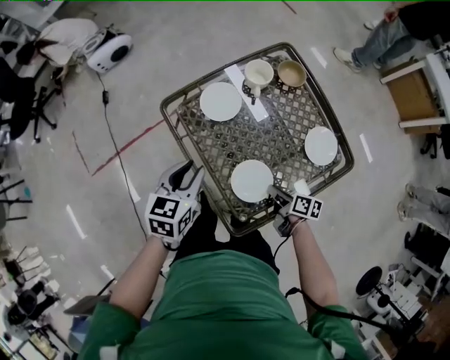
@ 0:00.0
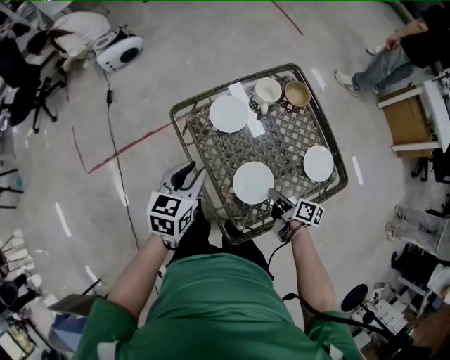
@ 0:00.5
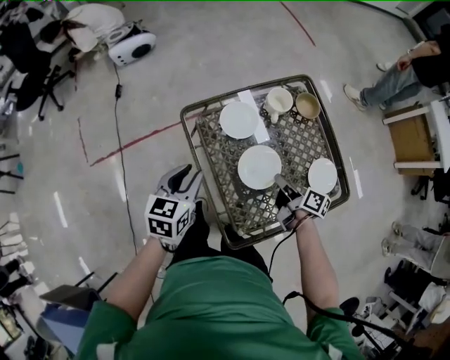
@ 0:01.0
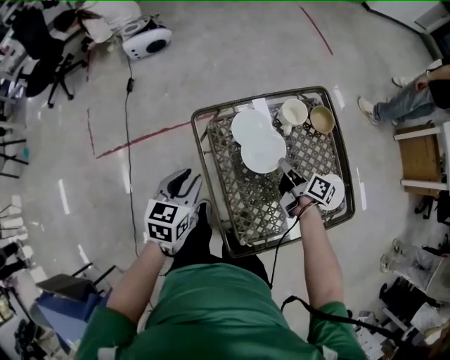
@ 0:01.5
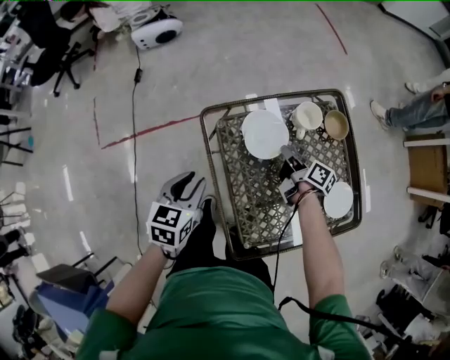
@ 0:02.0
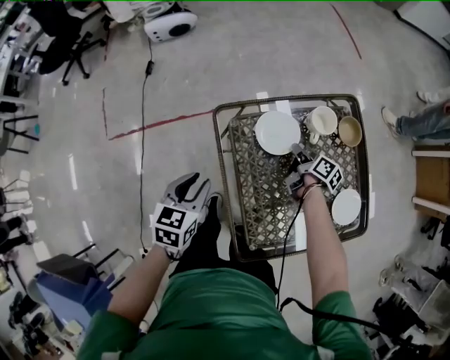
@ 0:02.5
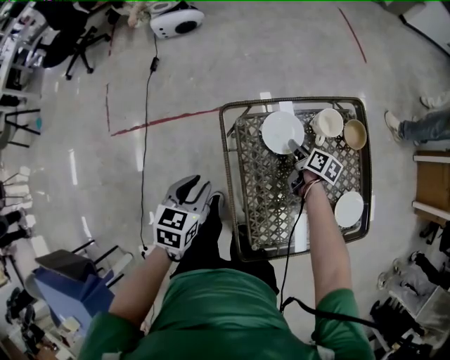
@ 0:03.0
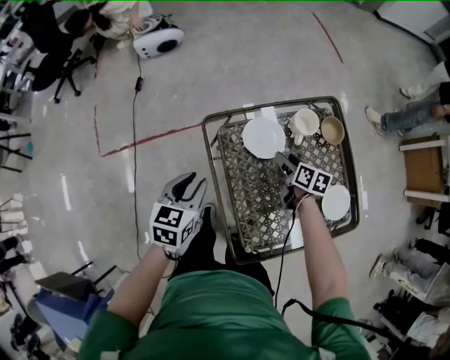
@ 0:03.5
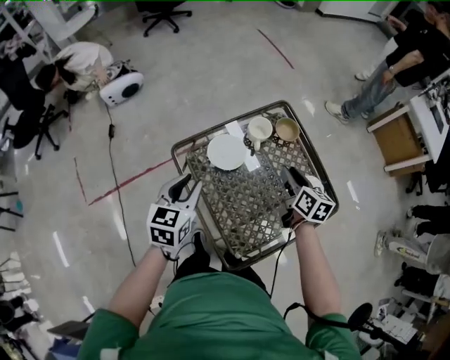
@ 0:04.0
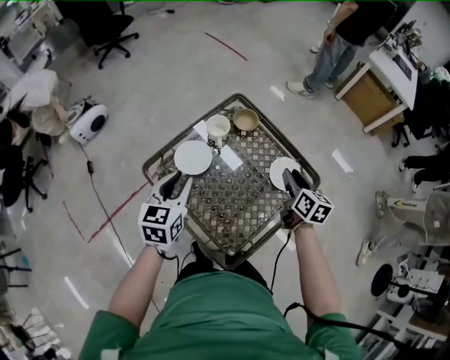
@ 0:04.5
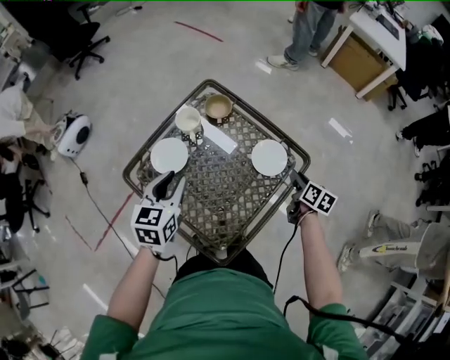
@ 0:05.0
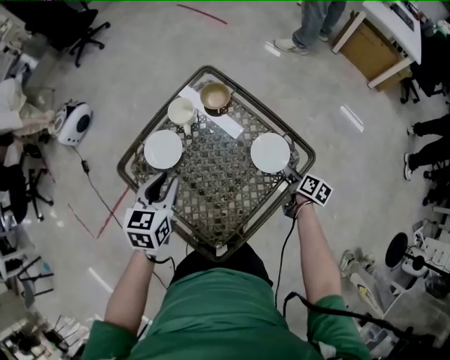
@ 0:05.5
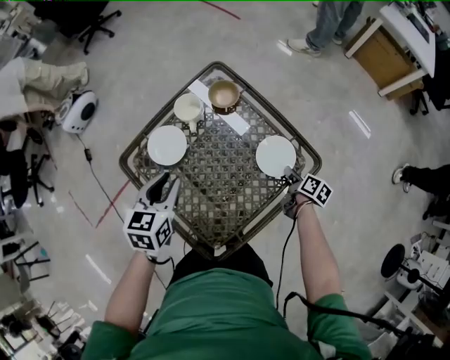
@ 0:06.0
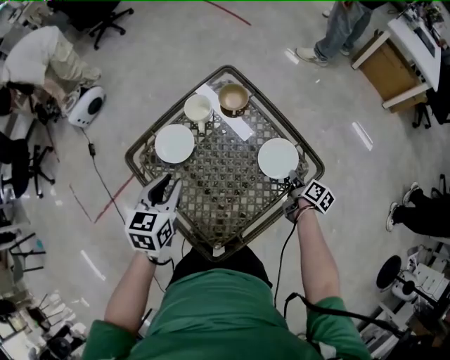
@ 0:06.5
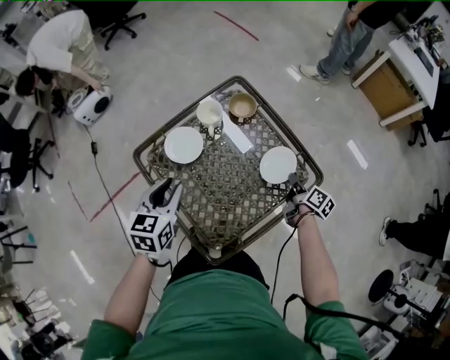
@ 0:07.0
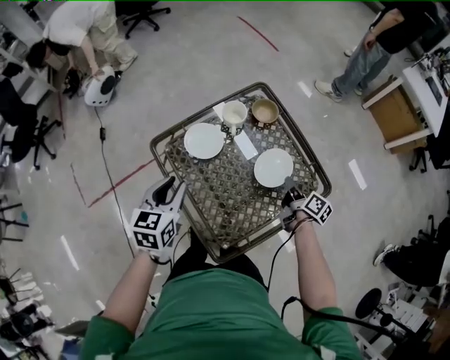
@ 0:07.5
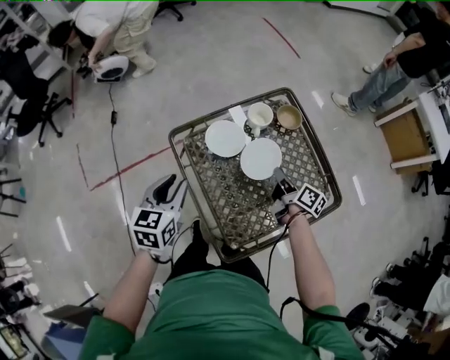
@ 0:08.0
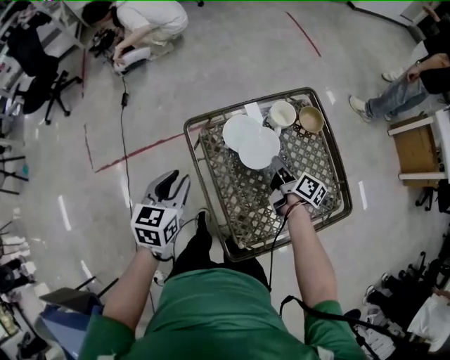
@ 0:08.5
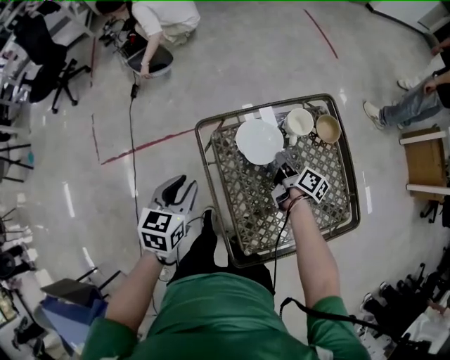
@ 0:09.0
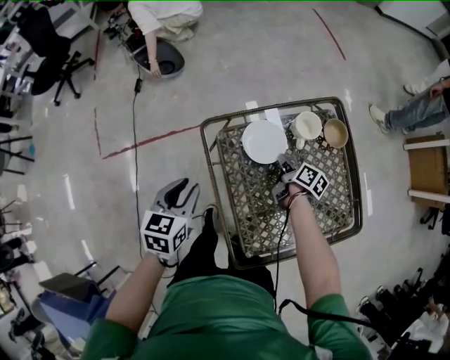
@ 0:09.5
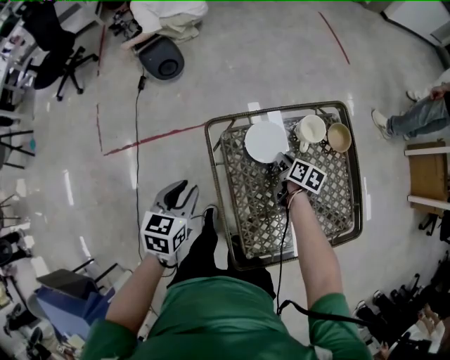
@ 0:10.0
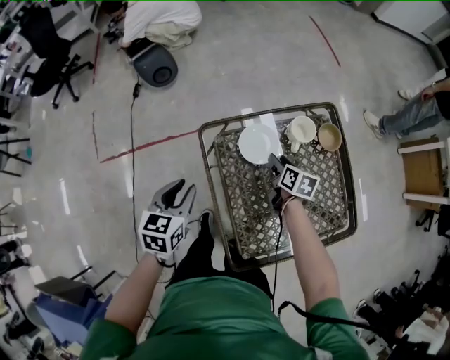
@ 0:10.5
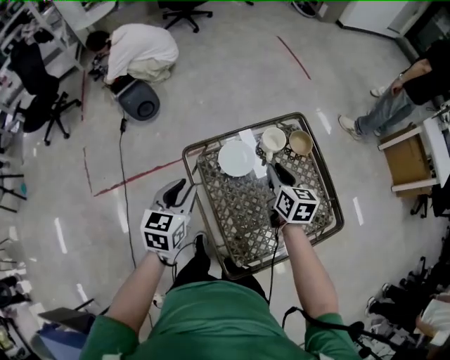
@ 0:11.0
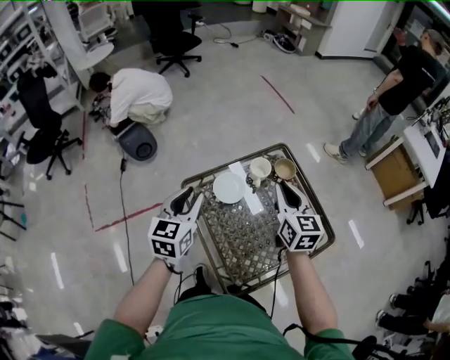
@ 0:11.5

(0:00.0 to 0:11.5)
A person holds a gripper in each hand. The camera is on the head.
0:00.0 - 0:02.0: The left gripper shifts roughly 10 cm to the left. The right gripper moves forward, approximately 30 cm.
0:02.0 - 0:04.0: The right gripper heads upward, to the right and backward, covering roughly 20 cm, changes its angle by some 40 degrees, and opens; the left gripper shifts about 10 cm upward and to the right.
0:04.0 - 0:06.0: The right gripper is displaced to the right and downward by approximately 35 cm, and rotates approximately 40 degrees. The left gripper goes some 20 cm to the right and forward.
0:06.0 - 0:07.5: The left gripper travels to the left and backward by about 10 cm, while the right gripper travels to the left and upward by roughly 15 cm, changes its angle by some 20 degrees, and closes.
0:07.5 - 0:09.5: The right gripper shifts some 30 cm to the left and forward, and changes its angle by some 20 degrees. Meanwhile the left gripper travels to the left and downward by some 15 cm.
0:09.5 - 0:11.5: The left gripper goes some 20 cm upward and to the right, and swivels approximately 20 degrees. Meanwhile the right gripper travels upward by about 35 cm, twists about 50 degrees counterclockwise, seen from behind, and opens, then closes again.

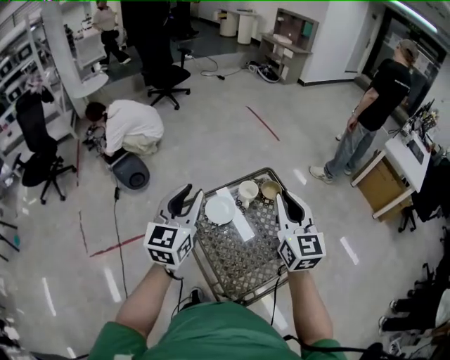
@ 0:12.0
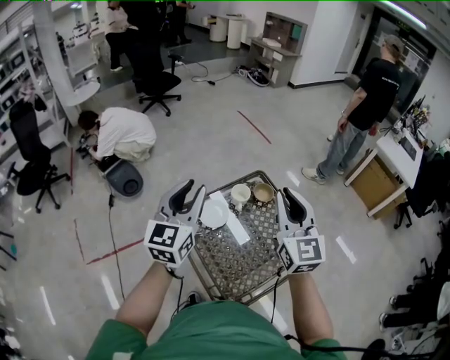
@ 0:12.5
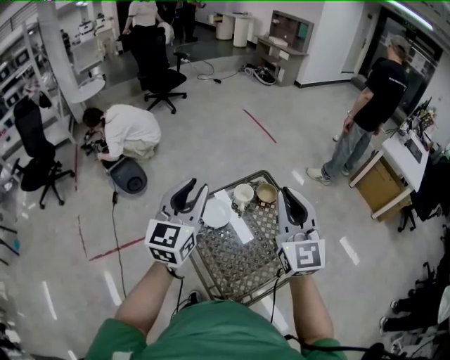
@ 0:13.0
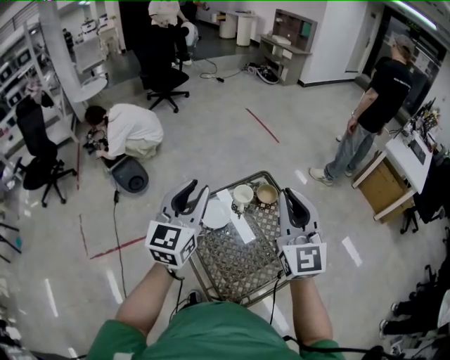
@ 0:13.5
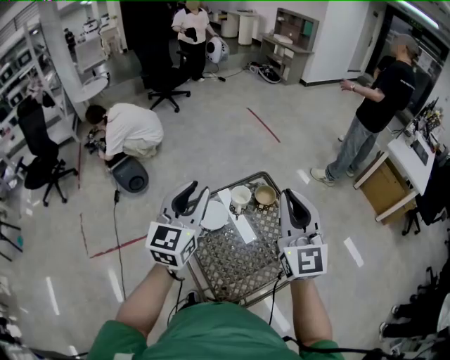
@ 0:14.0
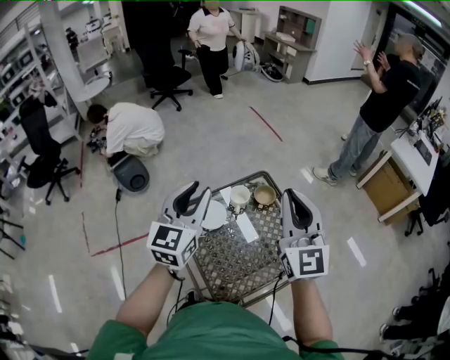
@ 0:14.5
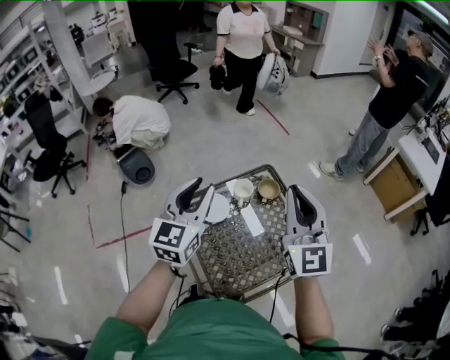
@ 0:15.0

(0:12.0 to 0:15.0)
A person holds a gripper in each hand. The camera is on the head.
0:12.0 - 0:13.5: The right gripper heads upward, covering roughly 5 cm. Meanwhile the left gripper changes place by some 5 cm.
0:13.5 - 0:15.0: The two grippers go roughly 5 cm to the right.

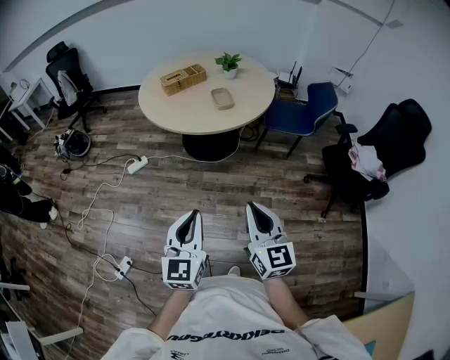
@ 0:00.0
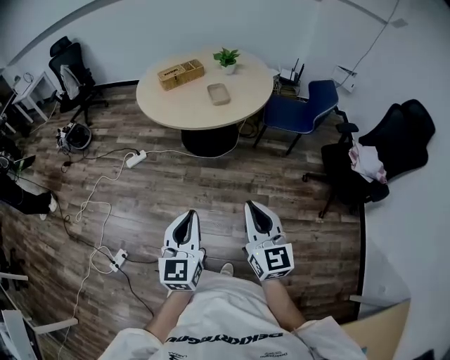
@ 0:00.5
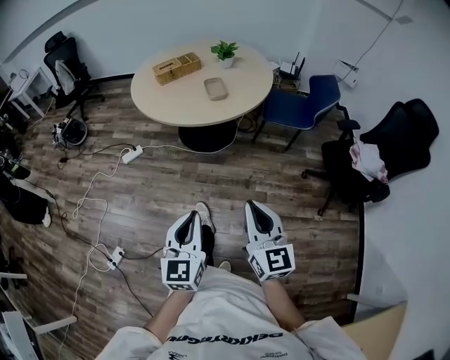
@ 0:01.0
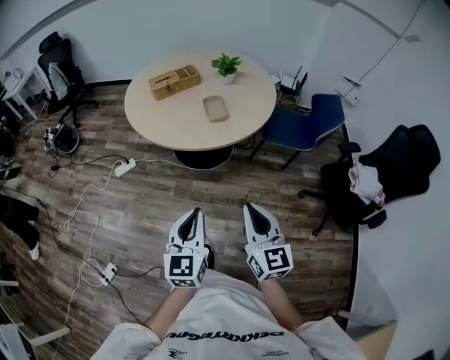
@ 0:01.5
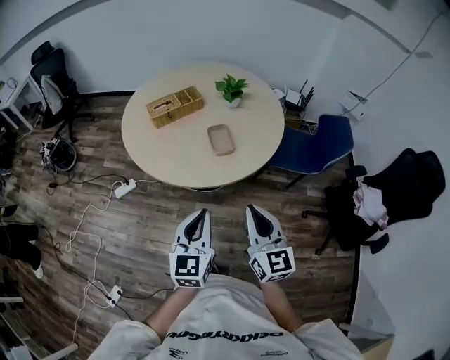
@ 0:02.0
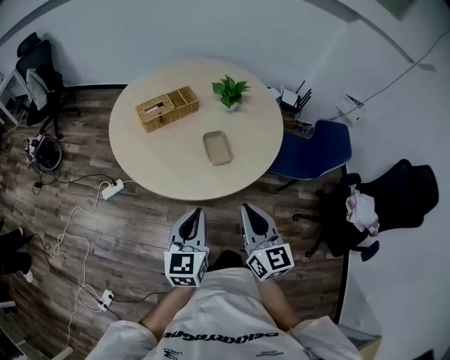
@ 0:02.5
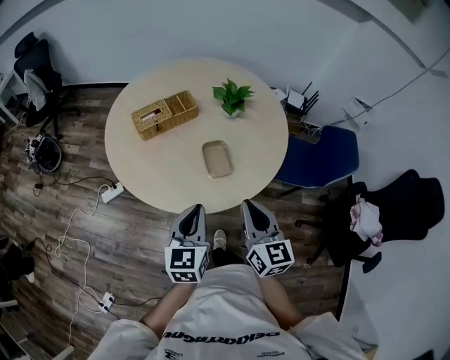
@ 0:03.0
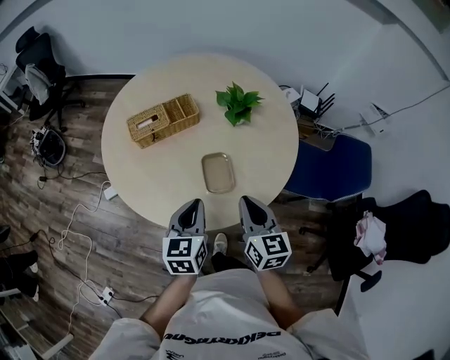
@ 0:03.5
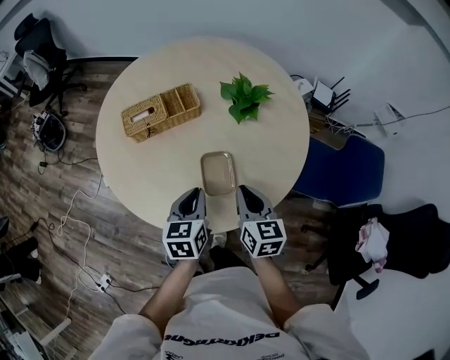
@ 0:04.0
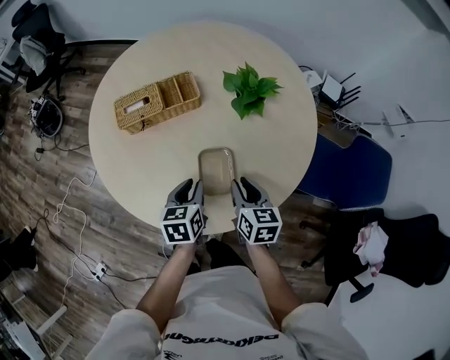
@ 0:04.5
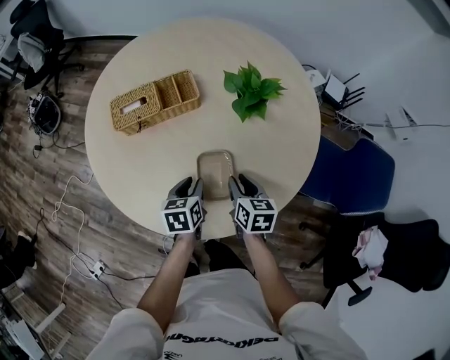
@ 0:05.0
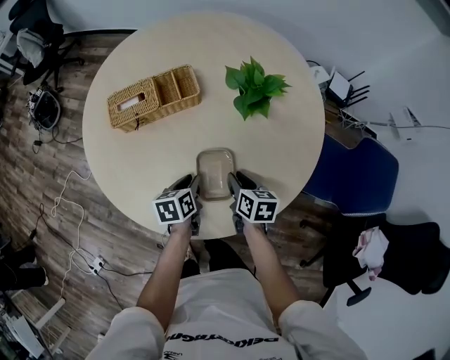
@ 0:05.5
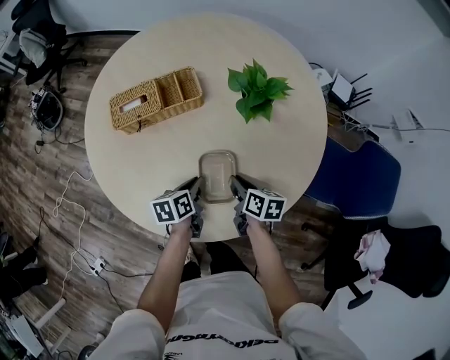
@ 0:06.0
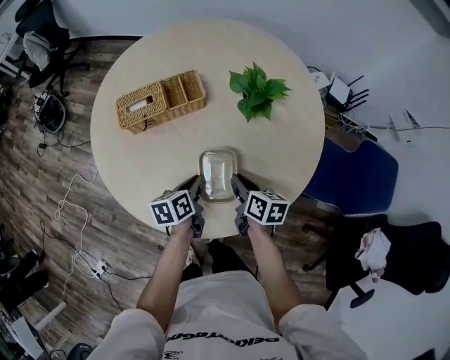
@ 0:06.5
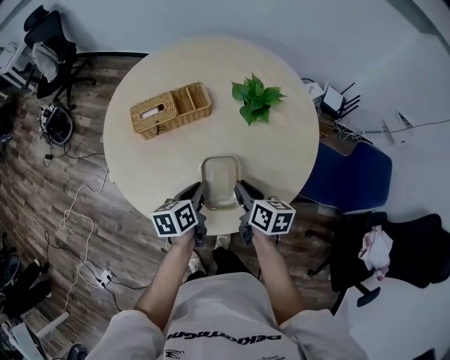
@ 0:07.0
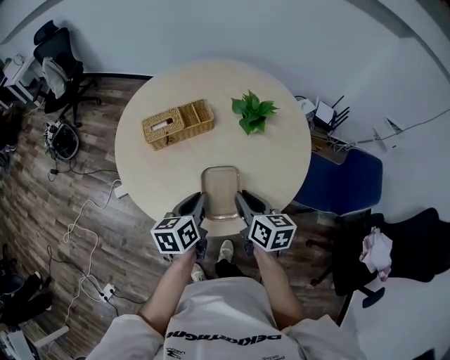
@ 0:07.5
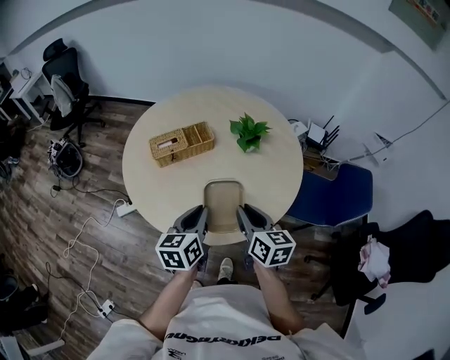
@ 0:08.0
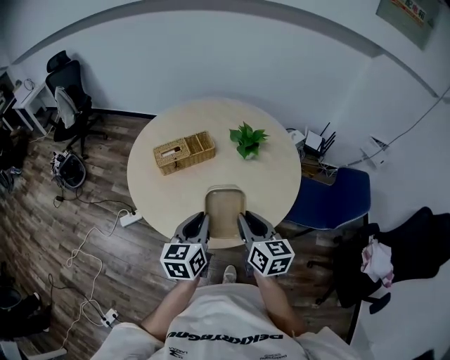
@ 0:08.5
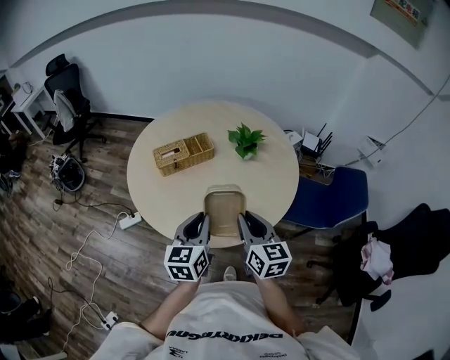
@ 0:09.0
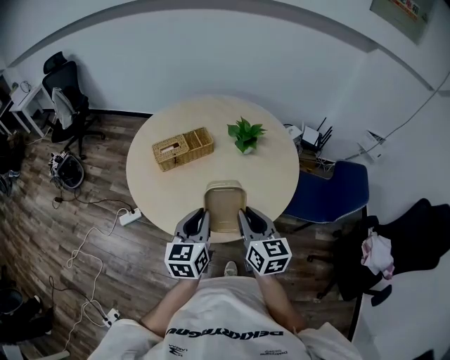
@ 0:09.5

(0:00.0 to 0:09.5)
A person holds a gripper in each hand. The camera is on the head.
0:00.0 - 0:02.0: The two grippers go roughly 35 cm forward.
0:02.0 - 0:04.0: The two grippers go approximately 40 cm forward and downward. The left gripper changes its angle by some 30 degrees. The right gripper rotates roughly 30 degrees.
0:04.0 - 0:05.5: The grippers both shift downward and forward by approximately 20 cm. The left gripper turns by roughly 20 degrees, and opens its fingers. Meanwhile the right gripper rotates about 30 degrees, and opens.
0:05.5 - 0:07.5: Both grippers move upward and backward, roughly 25 cm. The left gripper rotates approximately 20 degrees.
0:07.5 - 0:09.5: The left gripper shifts approximately 15 cm upward and backward, and changes its angle by roughly 30 degrees, while the right gripper goes about 15 cm backward and upward, and changes its angle by about 20 degrees.

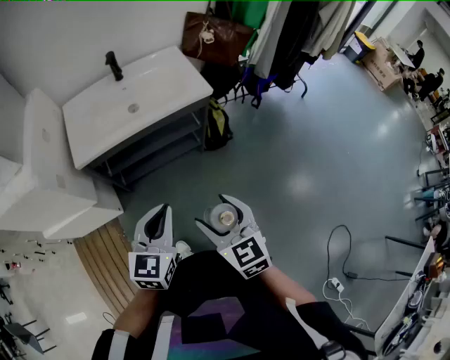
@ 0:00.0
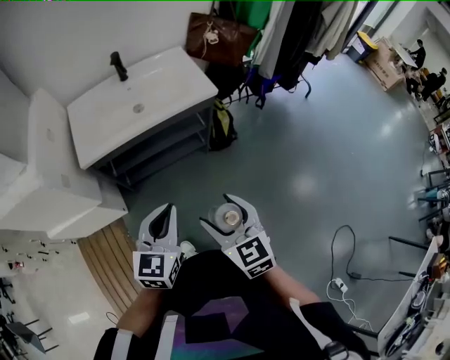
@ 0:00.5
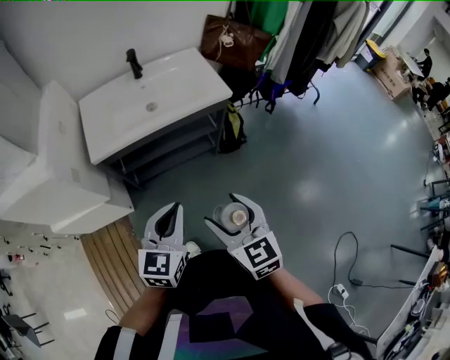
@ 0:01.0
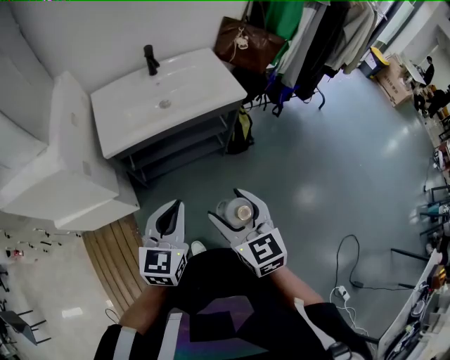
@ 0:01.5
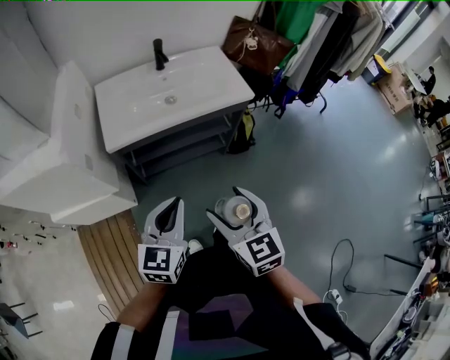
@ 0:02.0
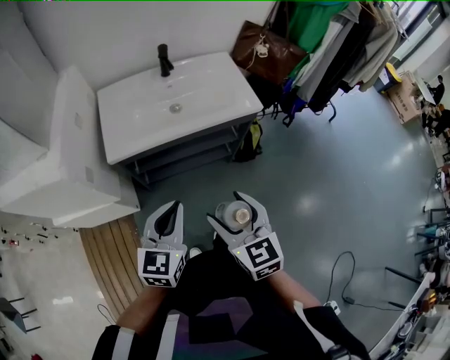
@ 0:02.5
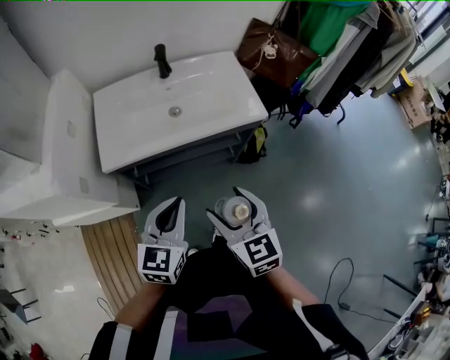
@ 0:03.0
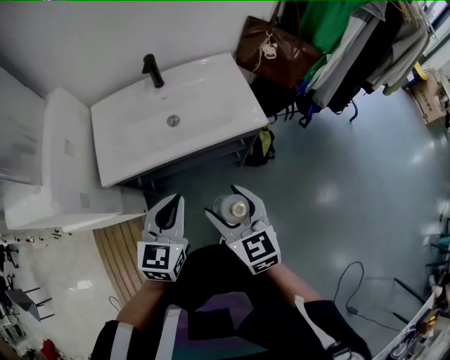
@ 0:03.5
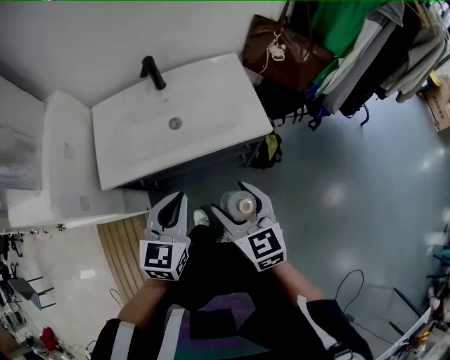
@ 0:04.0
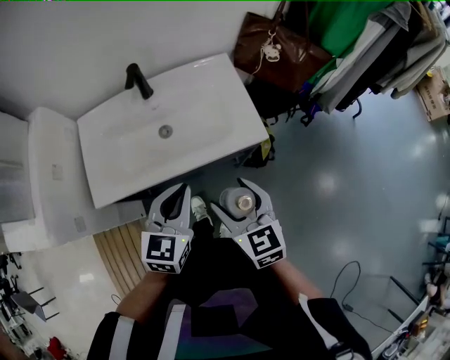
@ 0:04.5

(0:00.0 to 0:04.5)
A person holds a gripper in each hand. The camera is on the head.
0:00.0 - 0:02.0: The grippers both shift to the left by about 10 cm.
0:02.0 - 0:04.5: Both grippers travel together forward and to the right, about 30 cm.
